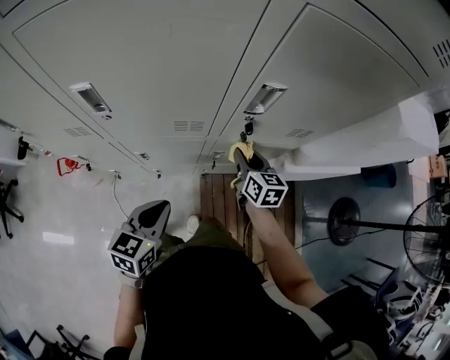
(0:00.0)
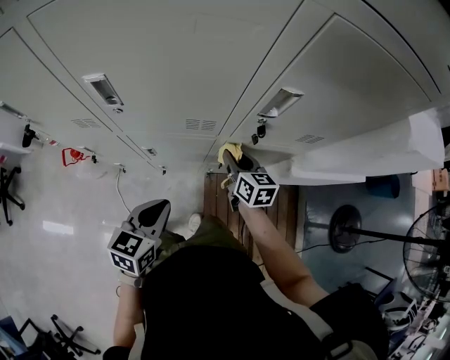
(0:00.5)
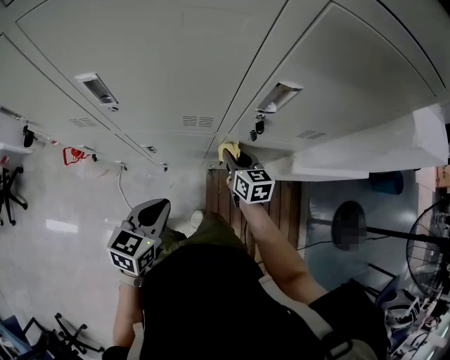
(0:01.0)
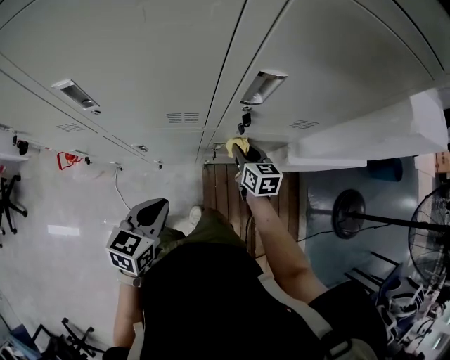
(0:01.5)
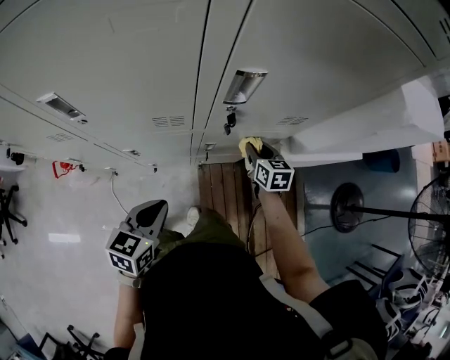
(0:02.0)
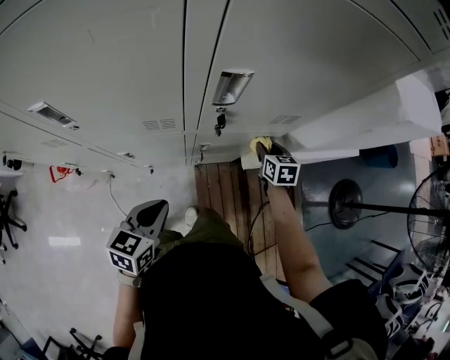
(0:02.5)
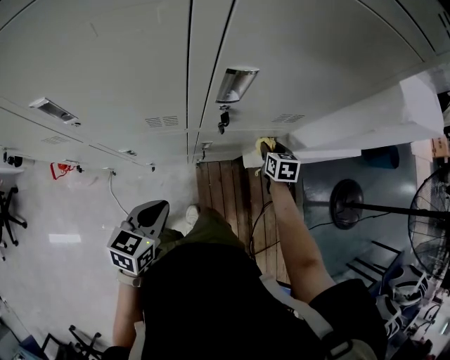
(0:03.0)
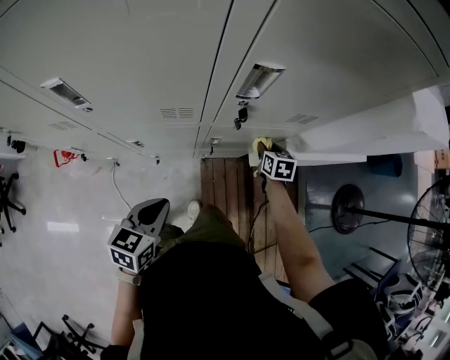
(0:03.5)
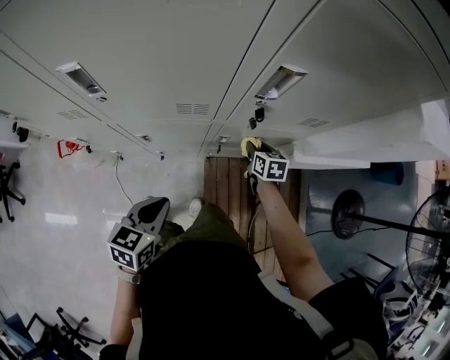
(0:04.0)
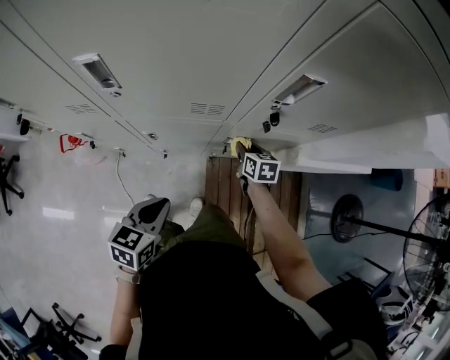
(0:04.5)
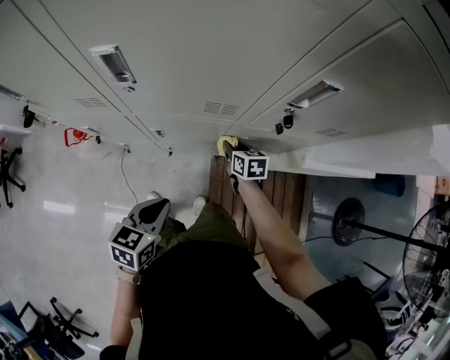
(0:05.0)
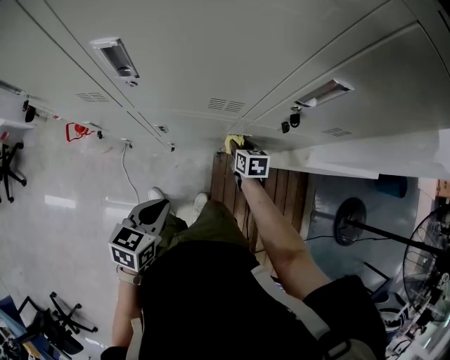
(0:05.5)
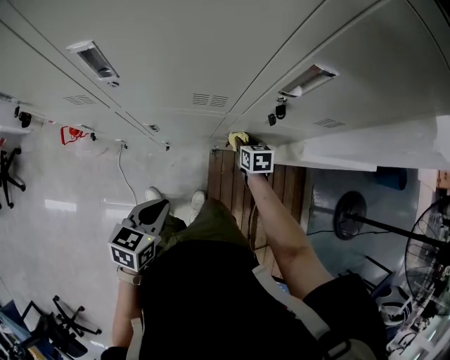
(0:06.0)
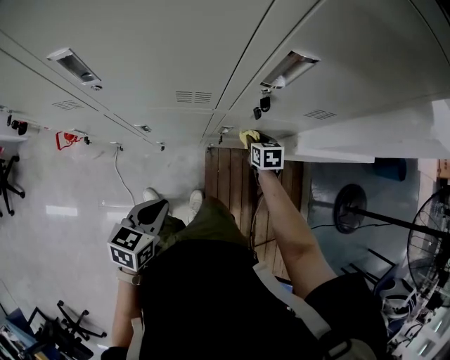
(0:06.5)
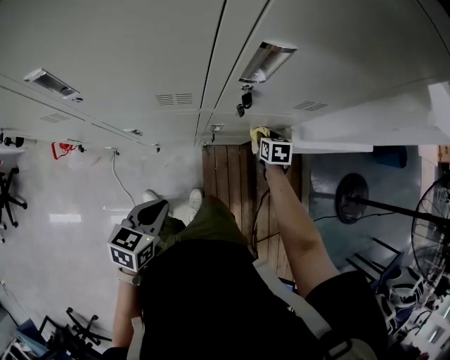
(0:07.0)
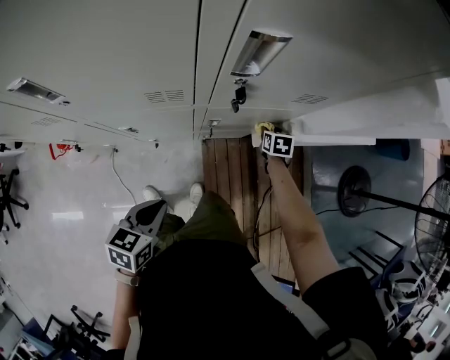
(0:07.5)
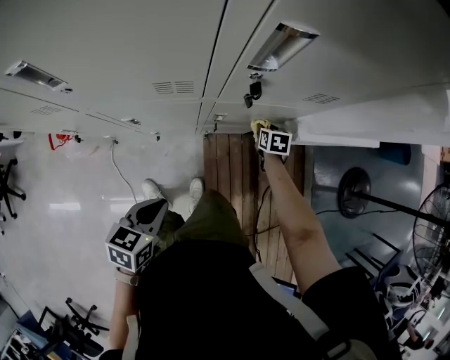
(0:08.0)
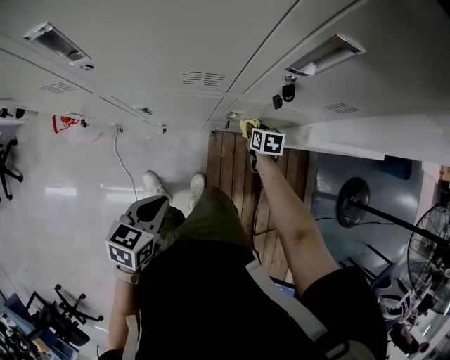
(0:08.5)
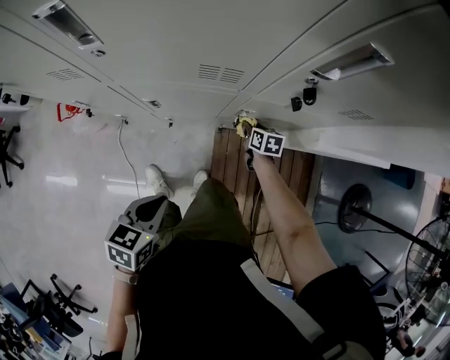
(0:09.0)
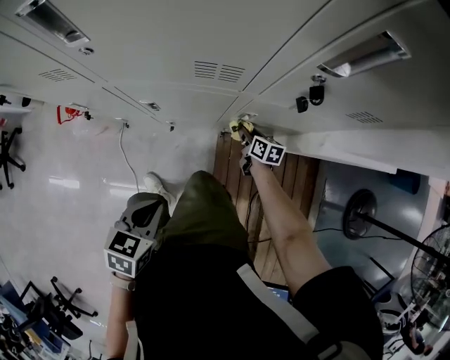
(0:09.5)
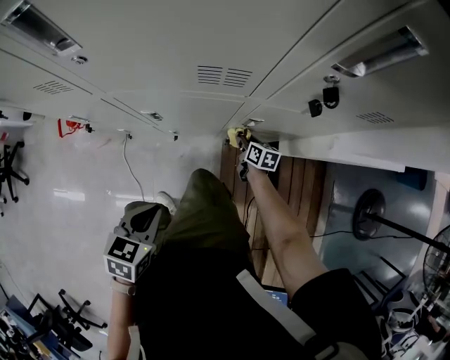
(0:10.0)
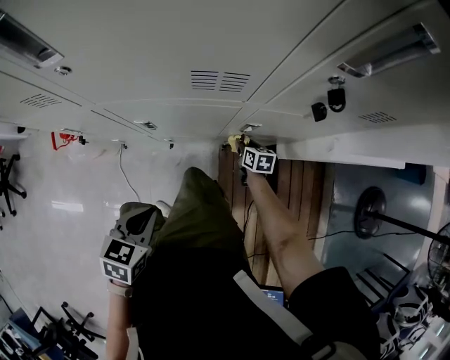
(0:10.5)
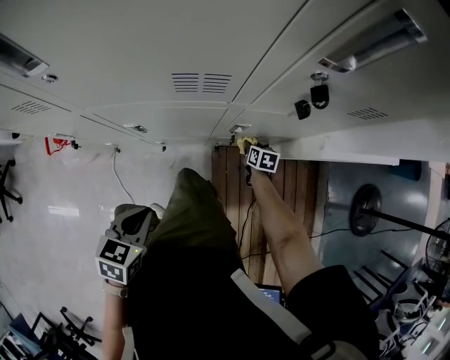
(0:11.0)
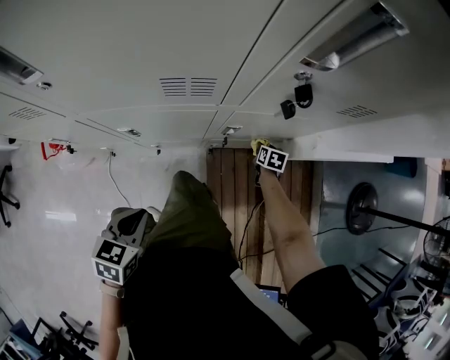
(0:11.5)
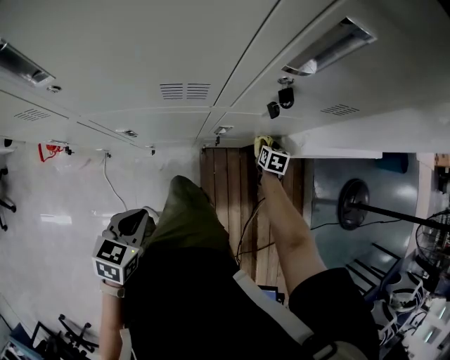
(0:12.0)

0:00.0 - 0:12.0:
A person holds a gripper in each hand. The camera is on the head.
0:00.0 - 0:02.0: The right gripper is displaced to the right and downward by some 10 cm.
0:02.0 - 0:04.0: The right gripper moves downward, about 5 cm, and goes to the right and returns, approximately 10 cm each way.
0:04.0 - 0:06.0: The right gripper travels to the left by roughly 5 cm.
0:06.0 - 0:08.0: The right gripper goes some 15 cm to the right.
0:08.0 - 0:10.0: The right gripper heads to the left and downward, covering some 20 cm, and rotates about 30 degrees, while the left gripper heads to the left and downward, covering some 10 cm.
0:10.0 - 0:12.0: The right gripper heads to the right, covering approximately 20 cm, and rotates some 30 degrees.

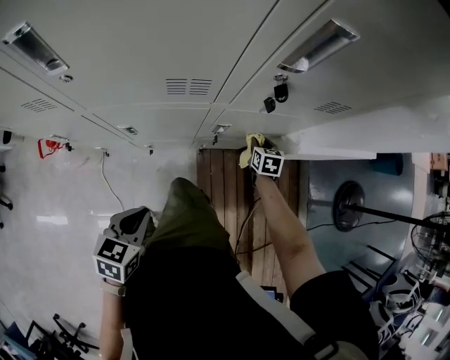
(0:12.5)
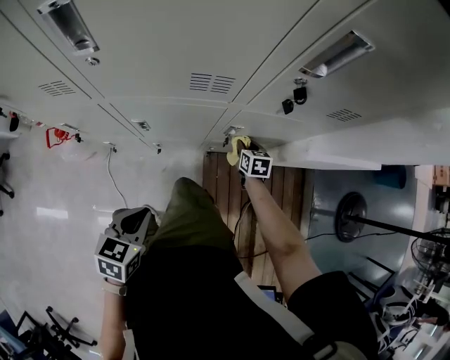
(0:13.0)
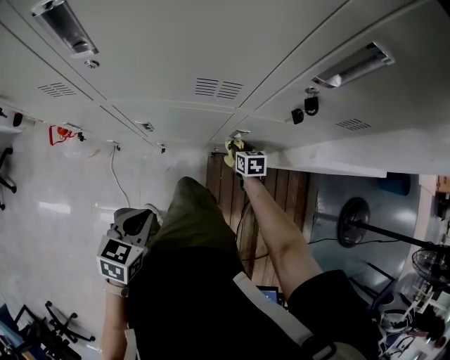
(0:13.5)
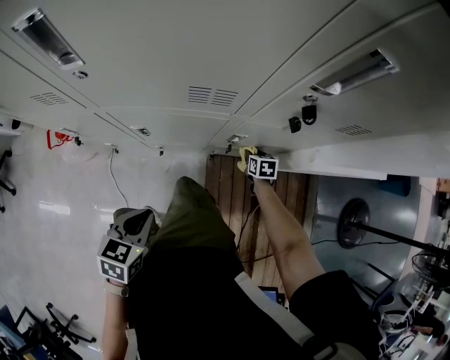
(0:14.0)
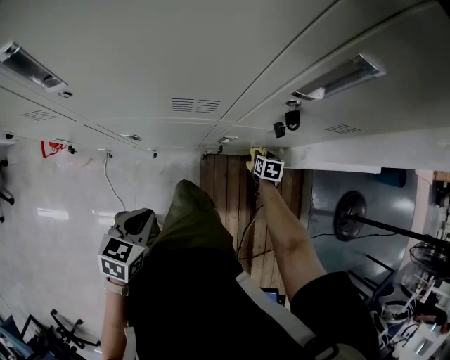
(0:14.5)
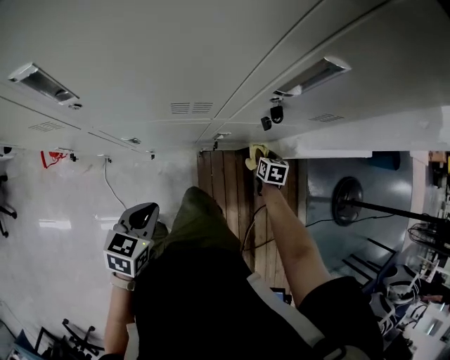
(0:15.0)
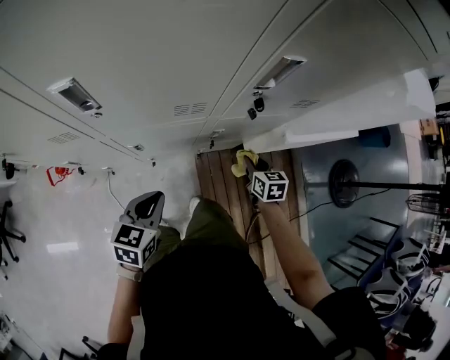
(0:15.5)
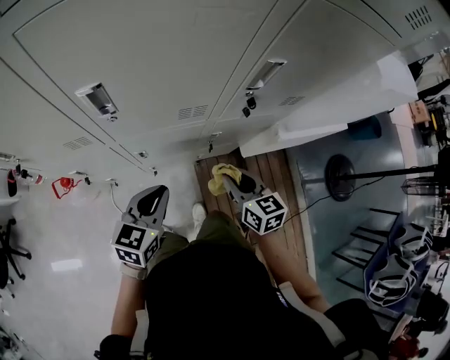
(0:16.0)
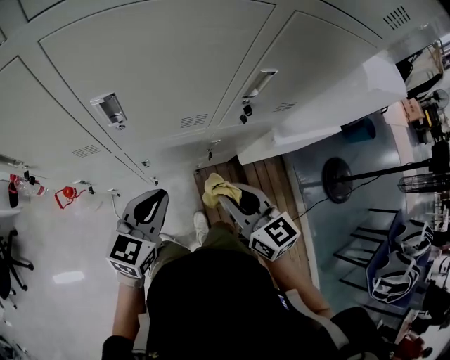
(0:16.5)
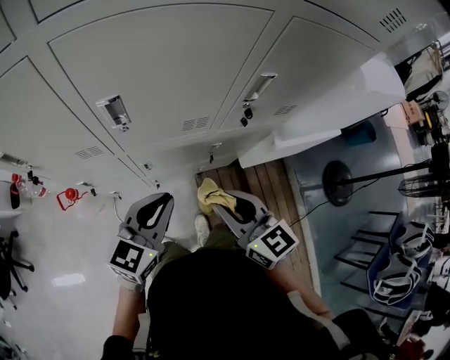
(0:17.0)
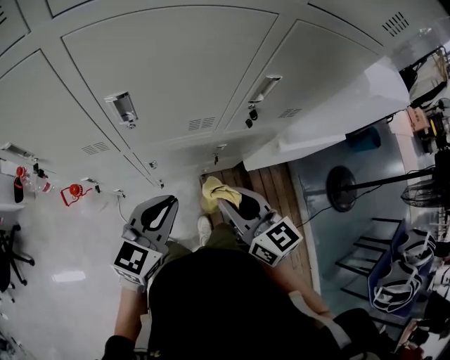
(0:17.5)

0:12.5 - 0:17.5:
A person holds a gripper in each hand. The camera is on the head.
0:12.5 - 0:15.0: The right gripper goes to the left and returns, some 15 cm each way.
0:15.0 - 0:17.5: The left gripper moves upward, some 25 cm, and rotates approximately 30 degrees, while the right gripper travels upward, to the left and backward by some 50 cm, and tilts its fingers some 40 degrees upward.

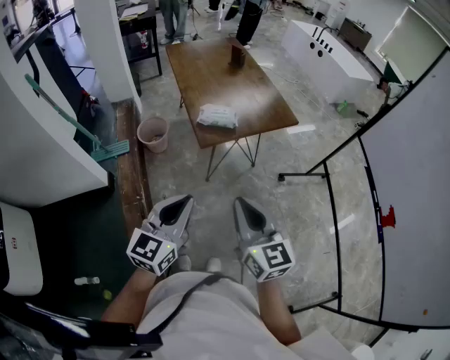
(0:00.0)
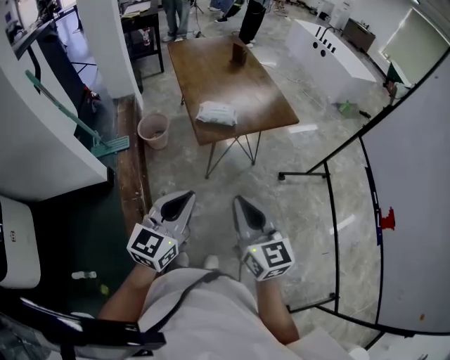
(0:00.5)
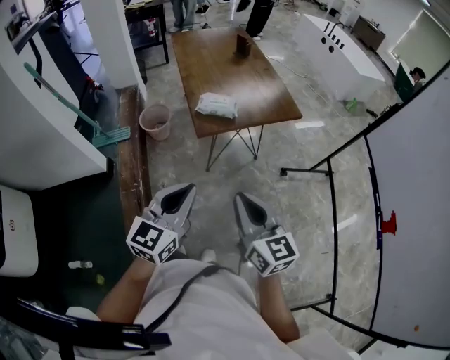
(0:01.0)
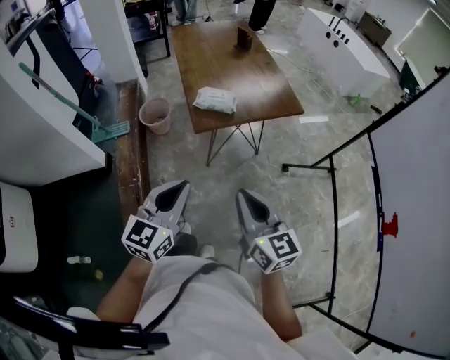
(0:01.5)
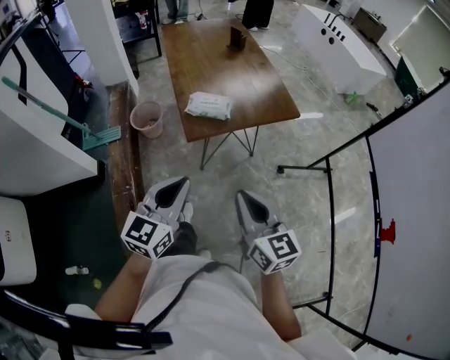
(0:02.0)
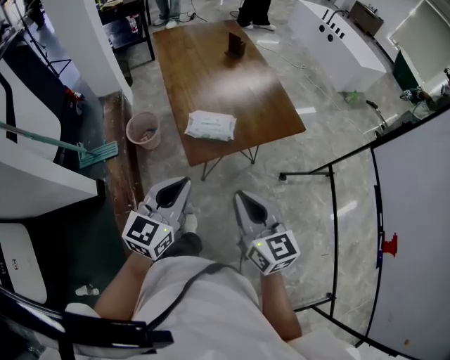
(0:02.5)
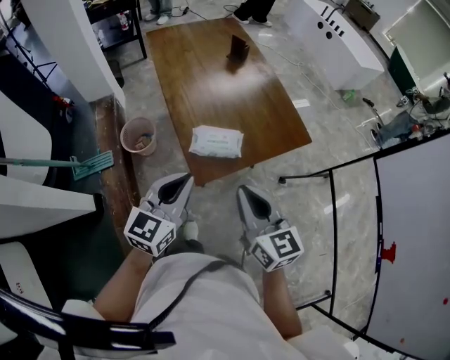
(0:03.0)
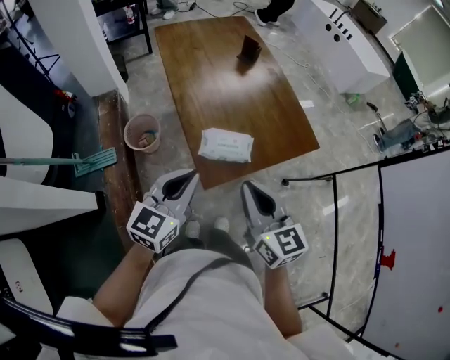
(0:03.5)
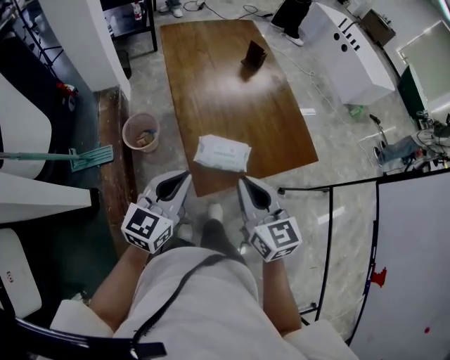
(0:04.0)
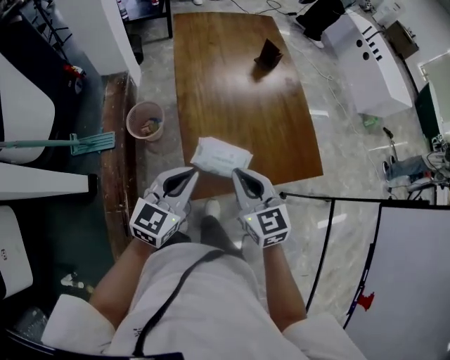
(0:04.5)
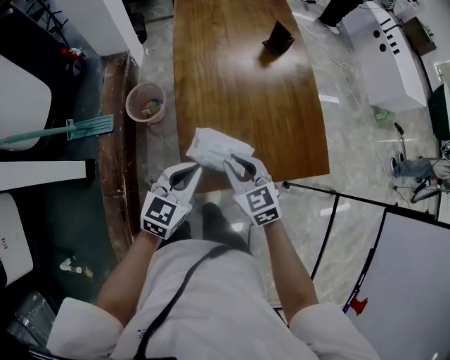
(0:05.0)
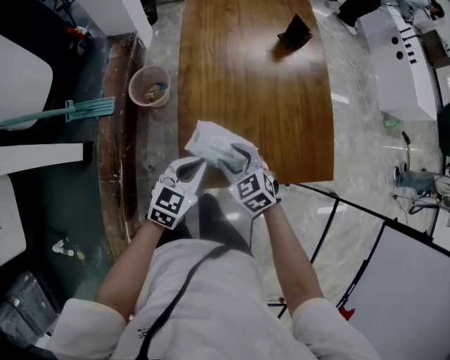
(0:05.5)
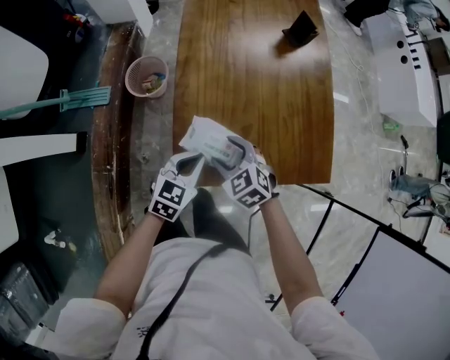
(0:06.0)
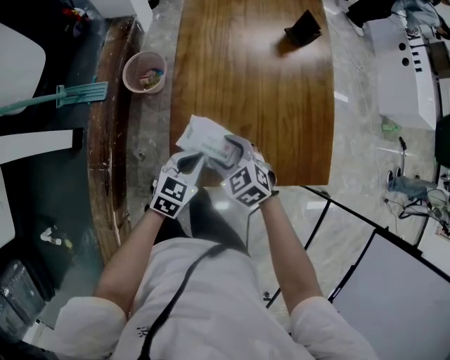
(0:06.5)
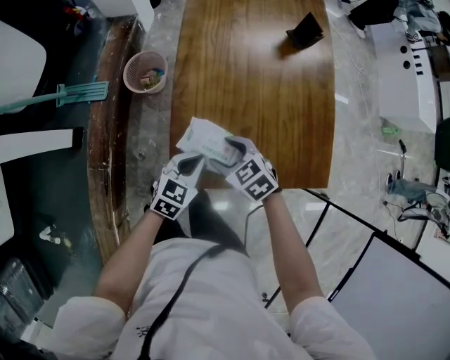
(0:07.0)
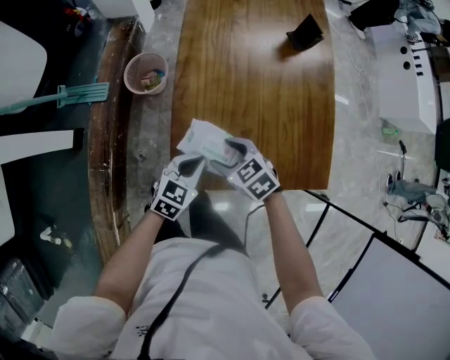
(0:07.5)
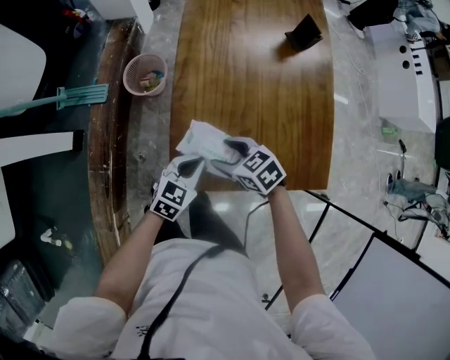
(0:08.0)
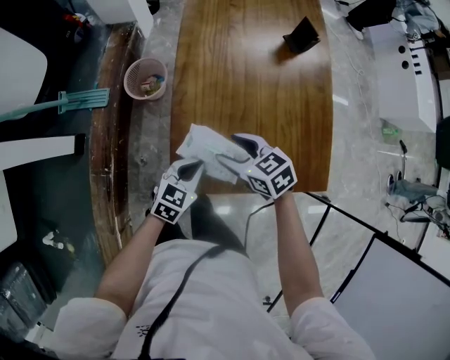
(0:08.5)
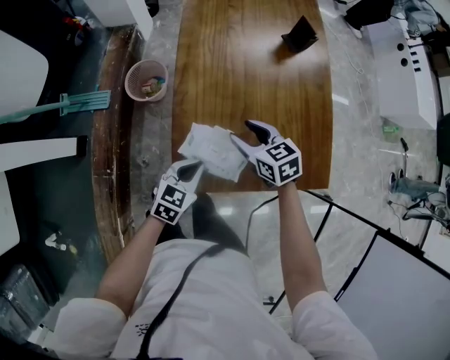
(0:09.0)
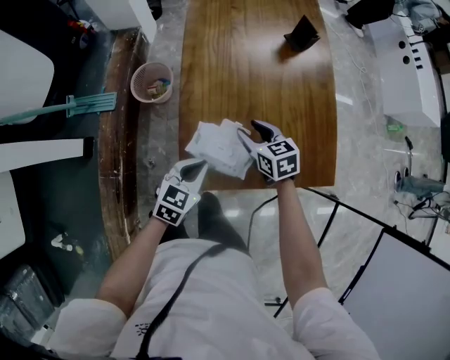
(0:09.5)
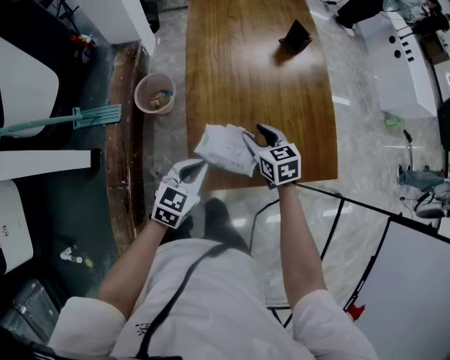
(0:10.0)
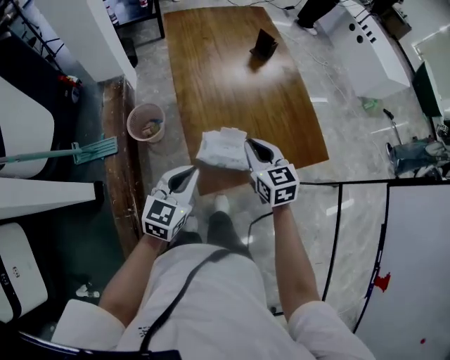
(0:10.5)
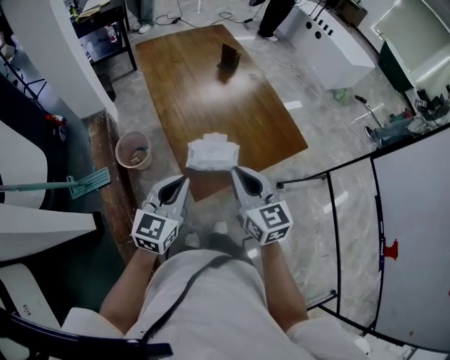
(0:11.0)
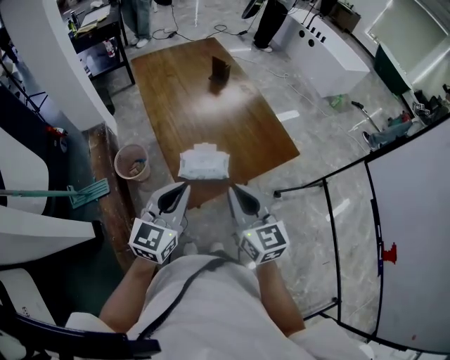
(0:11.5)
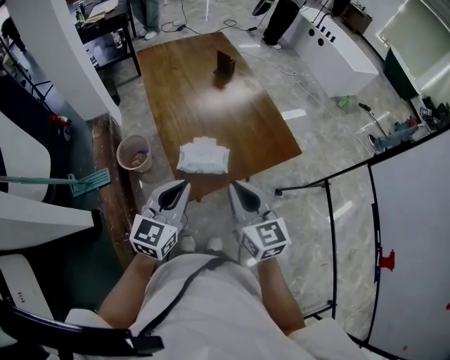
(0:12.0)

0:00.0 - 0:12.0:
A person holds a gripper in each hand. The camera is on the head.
0:00.0 - 0:02.0: The grippers both shift forward and to the right by some 10 cm.
0:02.0 - 0:04.0: Both grippers move forward, roughly 30 cm.
0:04.0 - 0:06.0: The left gripper goes approximately 25 cm downward and to the right, and swivels approximately 20 degrees. The right gripper travels downward and forward by about 25 cm, angles its fingers downward, by some 40 degrees, and opens its fingers.
0:06.0 - 0:08.0: The right gripper rotates roughly 30 degrees.
0:08.0 - 0:10.0: The left gripper travels upward by roughly 5 cm; the right gripper shifts some 10 cm forward and to the right, and swivels approximately 30 degrees.
0:10.0 - 0:12.0: The right gripper moves backward and upward, approximately 30 cm, swivels approximately 40 degrees, and closes, while the left gripper goes about 20 cm upward and backward, and changes its angle by approximately 20 degrees.
